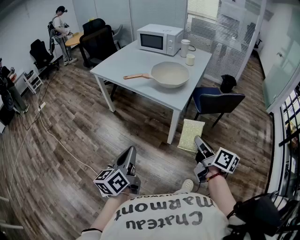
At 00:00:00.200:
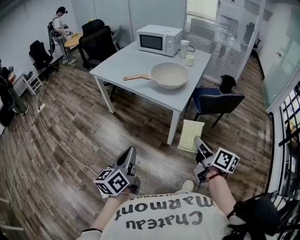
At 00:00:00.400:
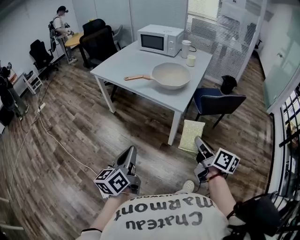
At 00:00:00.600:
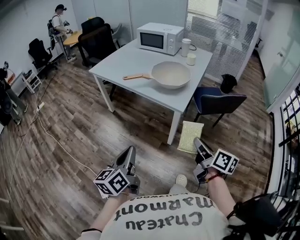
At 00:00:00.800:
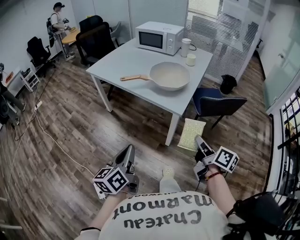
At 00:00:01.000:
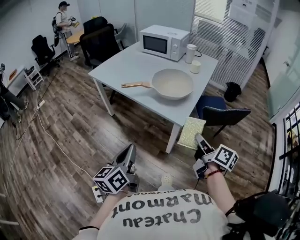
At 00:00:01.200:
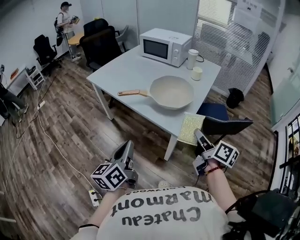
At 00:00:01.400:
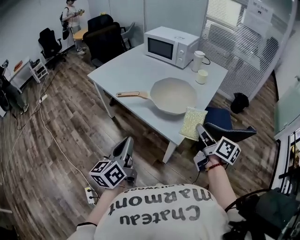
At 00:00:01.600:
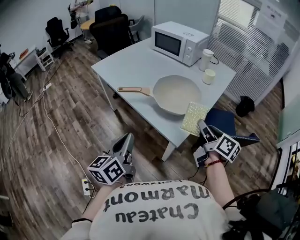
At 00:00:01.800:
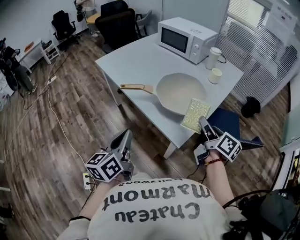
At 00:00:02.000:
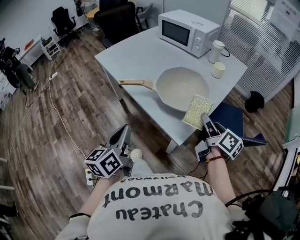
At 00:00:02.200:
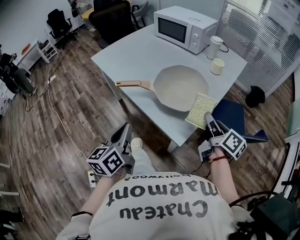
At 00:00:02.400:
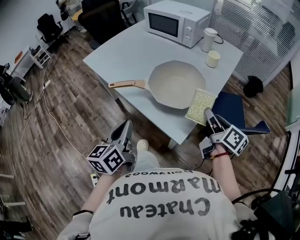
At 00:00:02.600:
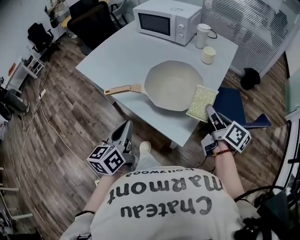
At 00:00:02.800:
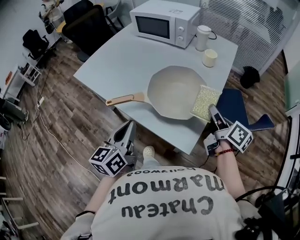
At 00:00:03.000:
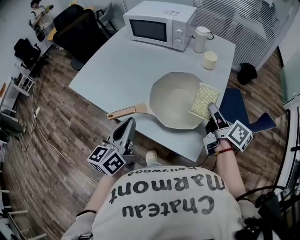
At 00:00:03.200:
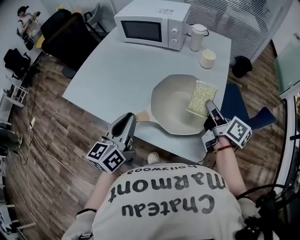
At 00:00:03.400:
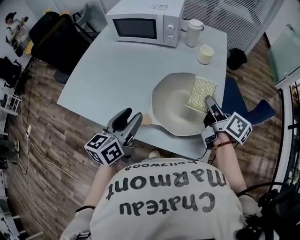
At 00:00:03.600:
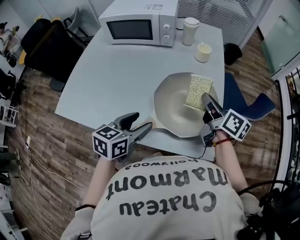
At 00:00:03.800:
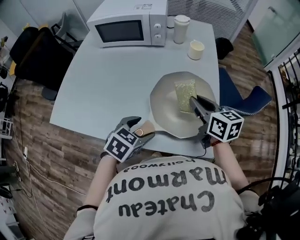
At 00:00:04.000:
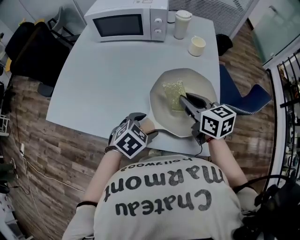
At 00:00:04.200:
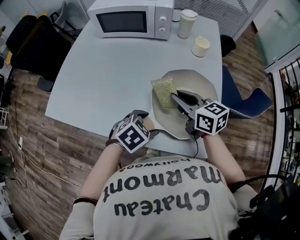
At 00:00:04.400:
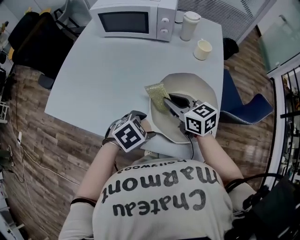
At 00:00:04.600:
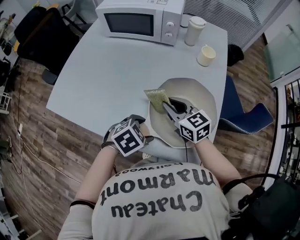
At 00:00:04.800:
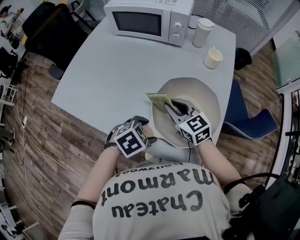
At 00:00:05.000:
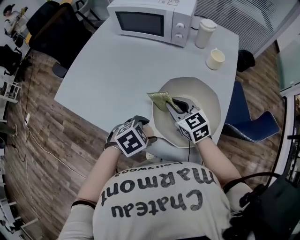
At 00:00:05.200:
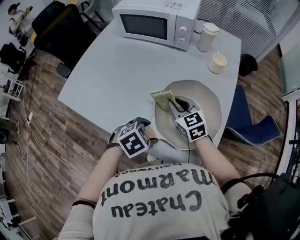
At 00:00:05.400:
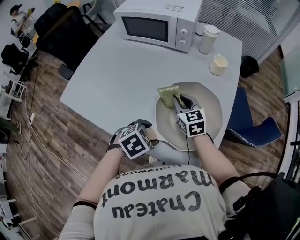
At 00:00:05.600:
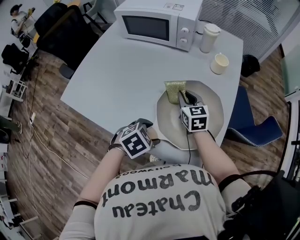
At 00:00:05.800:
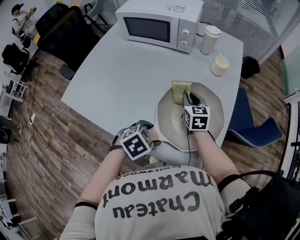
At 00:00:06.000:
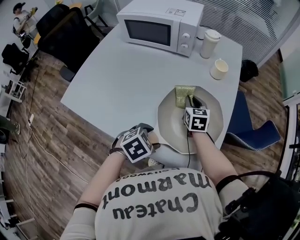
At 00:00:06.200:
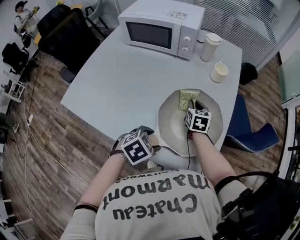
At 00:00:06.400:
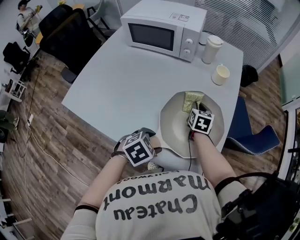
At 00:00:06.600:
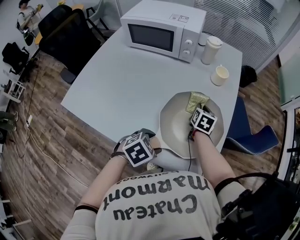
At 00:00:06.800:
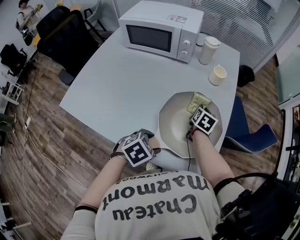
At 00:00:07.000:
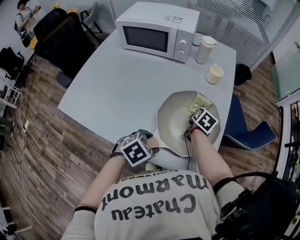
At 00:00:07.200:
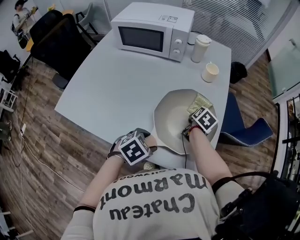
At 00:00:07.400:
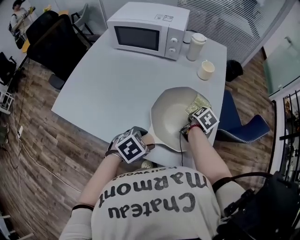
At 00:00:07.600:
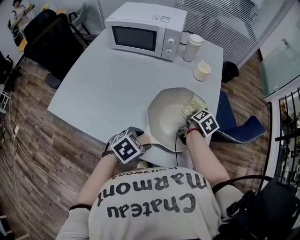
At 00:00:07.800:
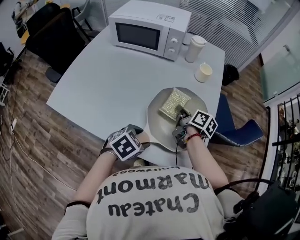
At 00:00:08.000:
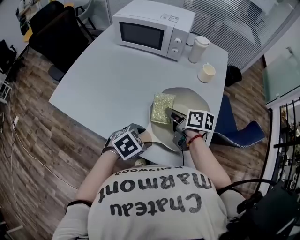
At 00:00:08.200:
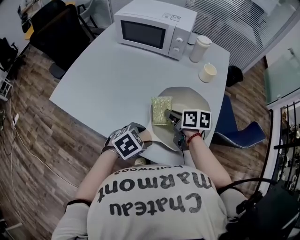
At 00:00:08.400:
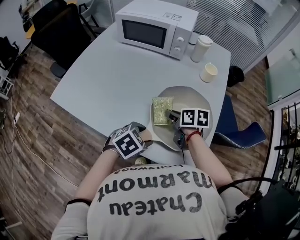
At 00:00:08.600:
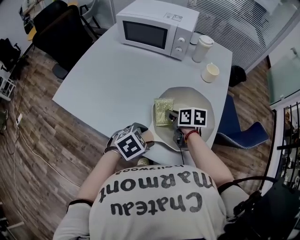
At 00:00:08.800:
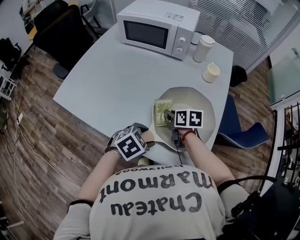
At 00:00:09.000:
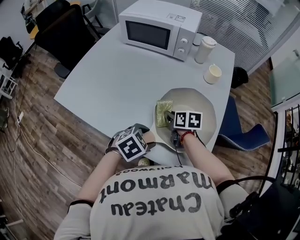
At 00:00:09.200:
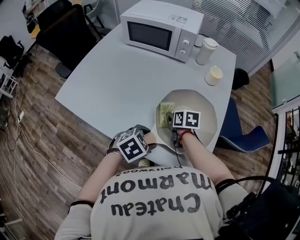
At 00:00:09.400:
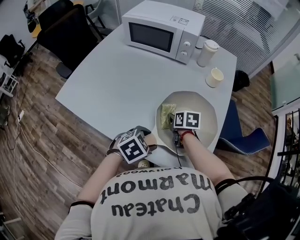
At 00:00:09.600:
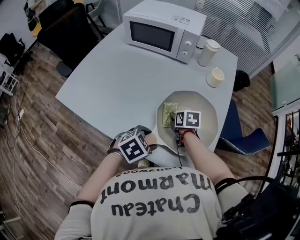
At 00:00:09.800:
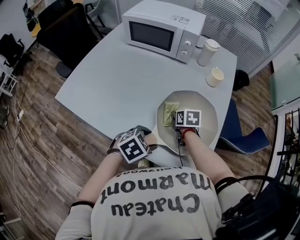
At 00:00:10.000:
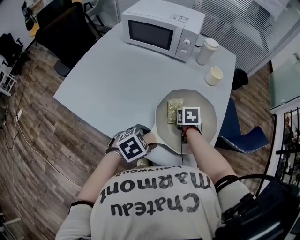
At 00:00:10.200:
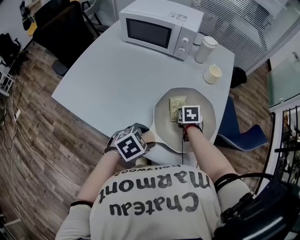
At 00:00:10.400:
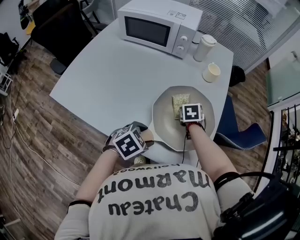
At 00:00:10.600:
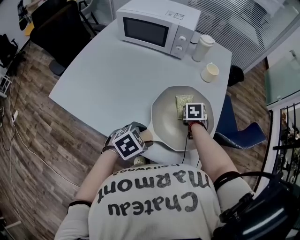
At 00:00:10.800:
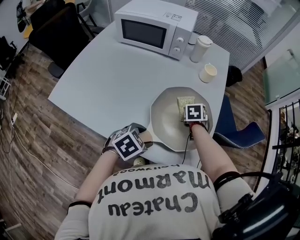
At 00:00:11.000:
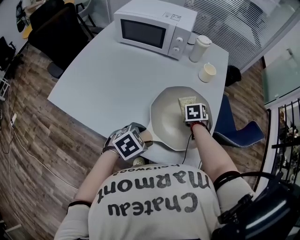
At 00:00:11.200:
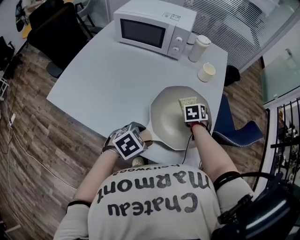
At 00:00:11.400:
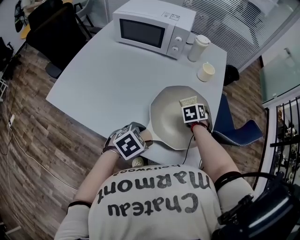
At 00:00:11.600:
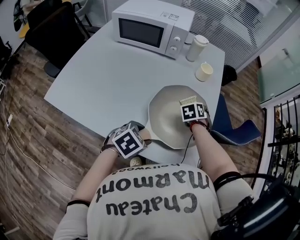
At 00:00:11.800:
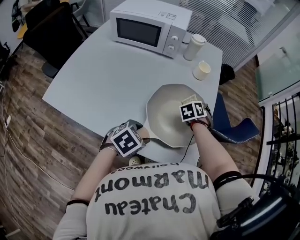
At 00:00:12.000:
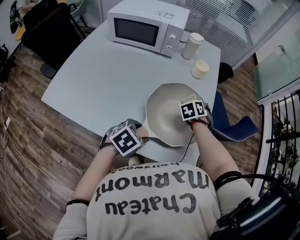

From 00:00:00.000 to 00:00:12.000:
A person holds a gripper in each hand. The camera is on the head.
From 00:00:00.000 to 00:00:01.600: Both grippers move forward, about 30 cm.
From 00:00:01.600 to 00:00:03.000: The left gripper is displaced forward by approximately 25 cm, while the right gripper heads forward, covering about 15 cm, and turns by some 20 degrees.
From 00:00:03.000 to 00:00:04.400: The right gripper moves to the left, some 25 cm, and twists some 40 degrees counterclockwise, seen from behind. Meanwhile the left gripper heads downward and forward, covering about 20 cm, tilts its fingers about 50 degrees downward, and opens its fingers.
From 00:00:04.400 to 00:00:06.000: The right gripper moves forward and downward, roughly 15 cm, and turns by roughly 30 degrees.
From 00:00:06.000 to 00:00:07.600: The right gripper travels to the right by about 15 cm, and twists roughly 50 degrees clockwise, seen from behind.
From 00:00:07.600 to 00:00:09.000: The right gripper moves approximately 5 cm upward and comes back, and changes its angle by some 60 degrees.
From 00:00:09.000 to 00:00:10.400: The right gripper is displaced to the right and forward by approximately 10 cm, and swivels roughly 40 degrees.
From 00:00:10.400 to 00:00:12.000: The right gripper heads to the right and forward, covering some 10 cm, and turns by about 30 degrees.

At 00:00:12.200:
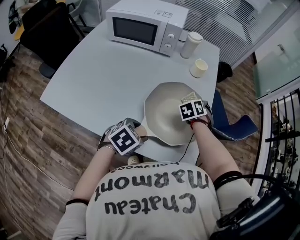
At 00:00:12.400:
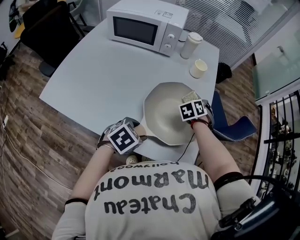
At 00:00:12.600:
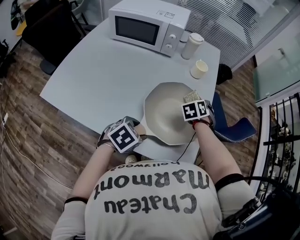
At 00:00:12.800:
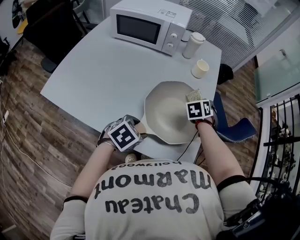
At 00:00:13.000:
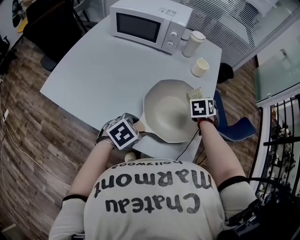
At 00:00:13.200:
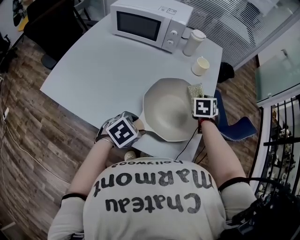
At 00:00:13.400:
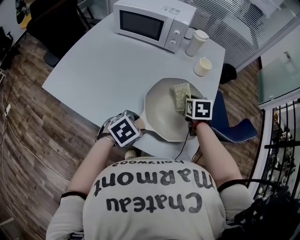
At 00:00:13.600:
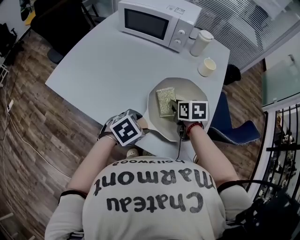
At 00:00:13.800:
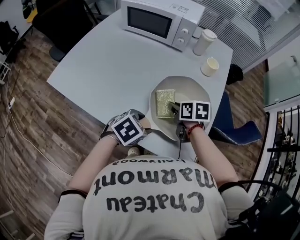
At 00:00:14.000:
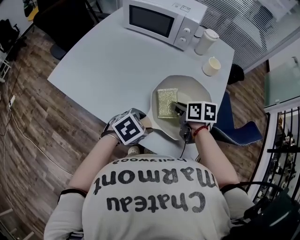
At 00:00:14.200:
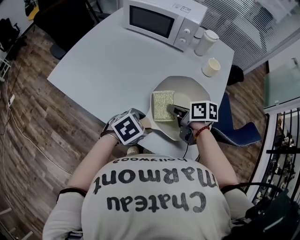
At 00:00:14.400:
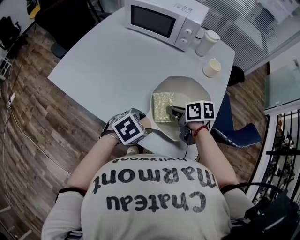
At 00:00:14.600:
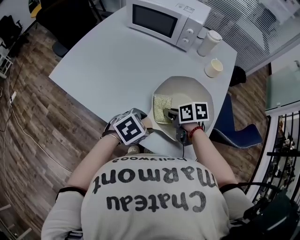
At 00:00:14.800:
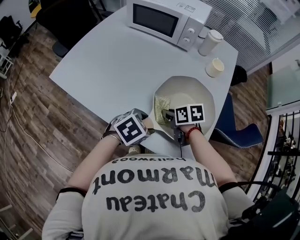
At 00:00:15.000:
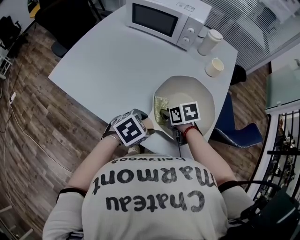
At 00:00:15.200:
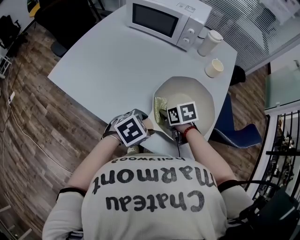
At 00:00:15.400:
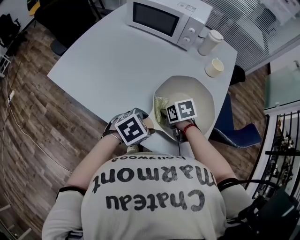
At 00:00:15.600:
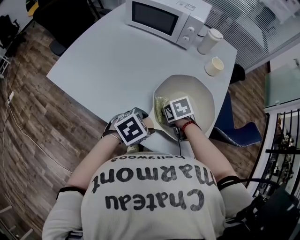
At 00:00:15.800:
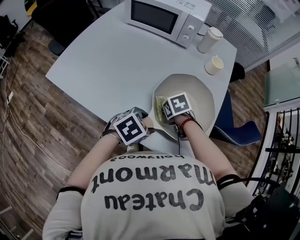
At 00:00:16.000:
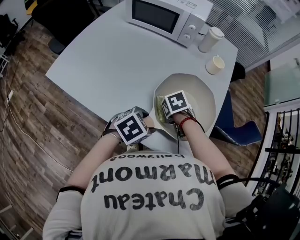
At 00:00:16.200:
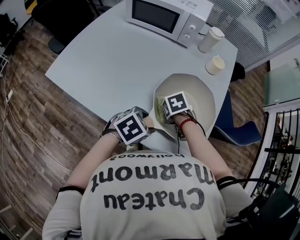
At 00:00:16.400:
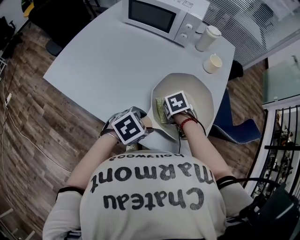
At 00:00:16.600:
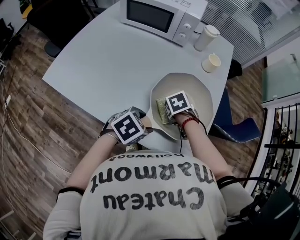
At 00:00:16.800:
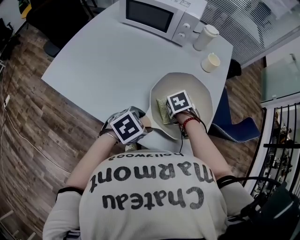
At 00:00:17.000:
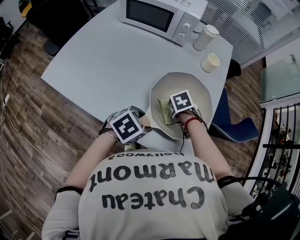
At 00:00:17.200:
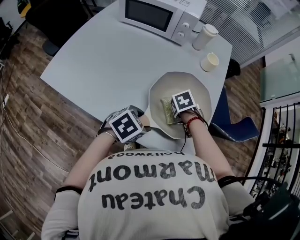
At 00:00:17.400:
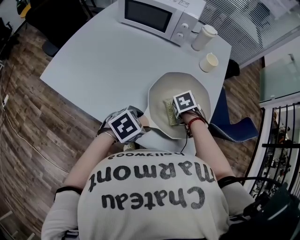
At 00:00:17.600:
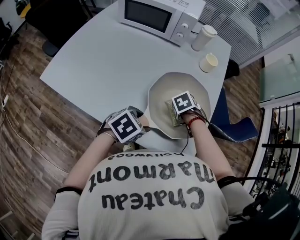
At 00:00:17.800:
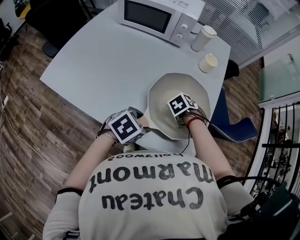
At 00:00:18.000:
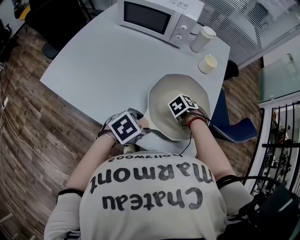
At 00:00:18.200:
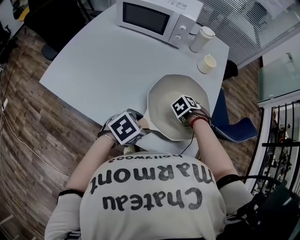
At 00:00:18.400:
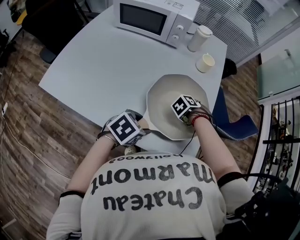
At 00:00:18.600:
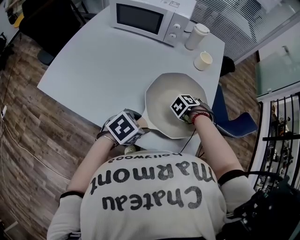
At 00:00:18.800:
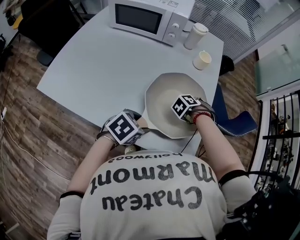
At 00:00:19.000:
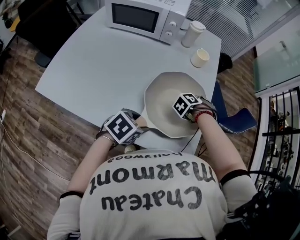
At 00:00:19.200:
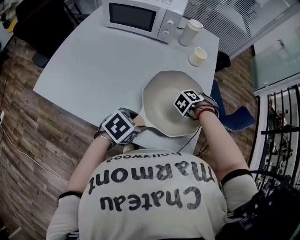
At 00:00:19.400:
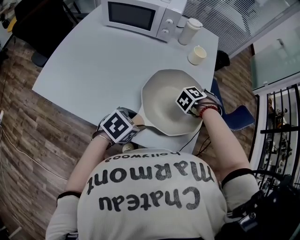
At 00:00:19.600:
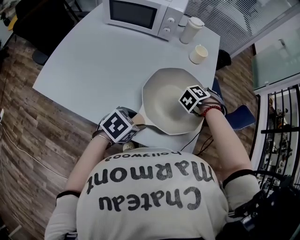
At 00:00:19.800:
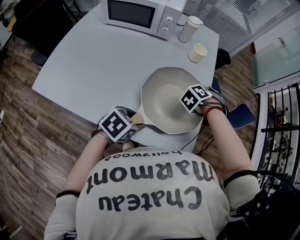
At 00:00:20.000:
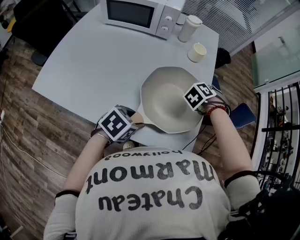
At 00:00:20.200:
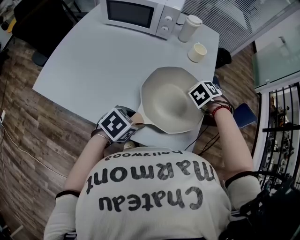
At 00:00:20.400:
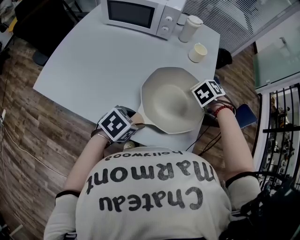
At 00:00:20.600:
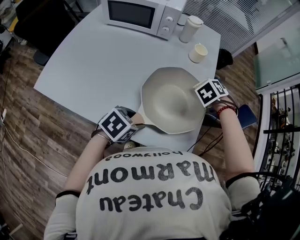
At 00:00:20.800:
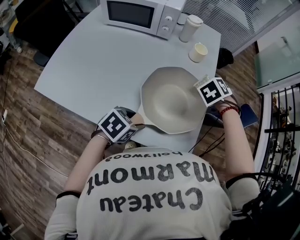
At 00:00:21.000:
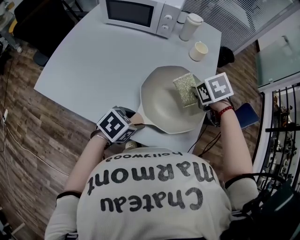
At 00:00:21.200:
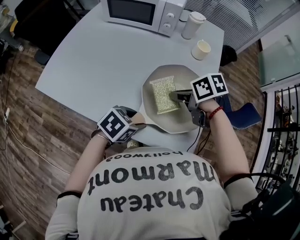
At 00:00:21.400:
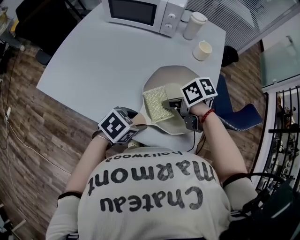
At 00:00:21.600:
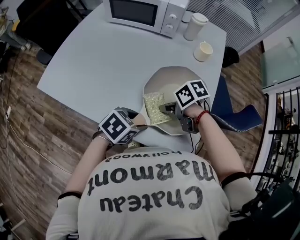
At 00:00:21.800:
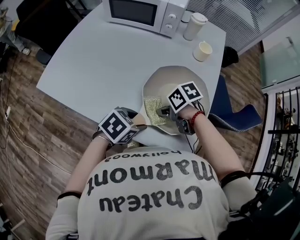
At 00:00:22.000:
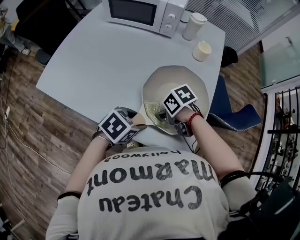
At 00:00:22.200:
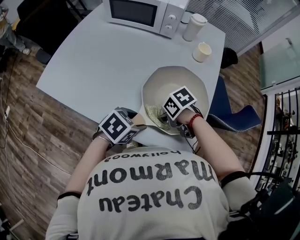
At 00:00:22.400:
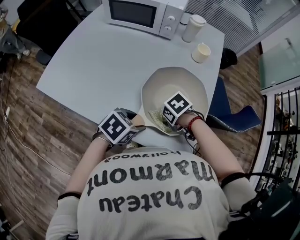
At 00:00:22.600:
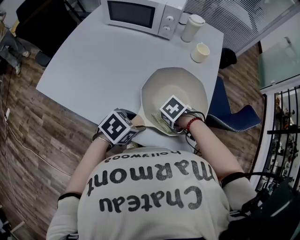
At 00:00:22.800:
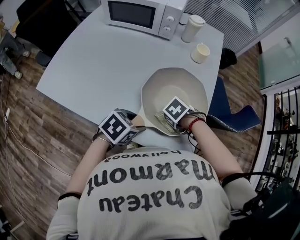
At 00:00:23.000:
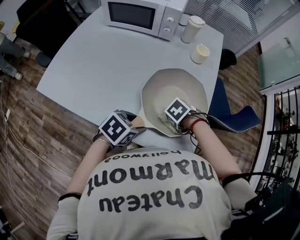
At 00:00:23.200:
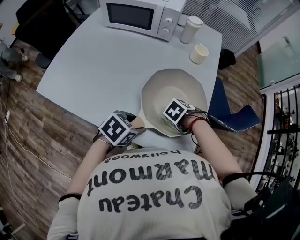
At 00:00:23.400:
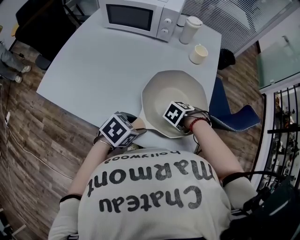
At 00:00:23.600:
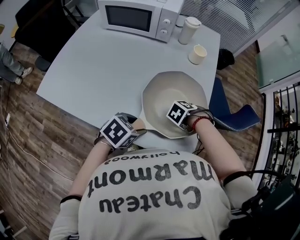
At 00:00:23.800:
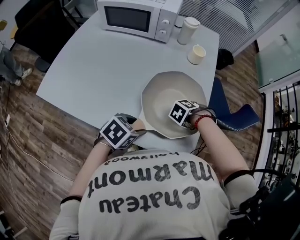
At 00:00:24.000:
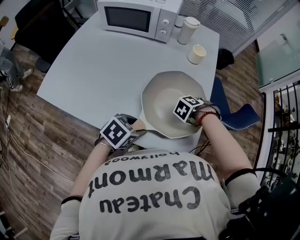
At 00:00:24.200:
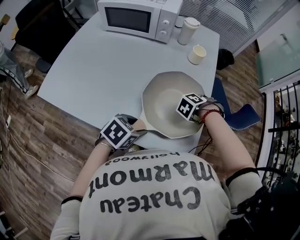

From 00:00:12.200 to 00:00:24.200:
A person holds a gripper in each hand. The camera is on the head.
From 00:00:12.200 to 00:00:13.800: The right gripper ends up roughly 20 cm from where it was, and turns by some 60 degrees.
From 00:00:13.800 to 00:00:15.200: The right gripper moves about 5 cm.
From 00:00:15.200 to 00:00:16.600: The right gripper ends up some 5 cm from where it was, and rotates approximately 30 degrees.
From 00:00:16.600 to 00:00:18.200: The right gripper changes place by about 10 cm, and turns by some 30 degrees.
From 00:00:18.200 to 00:00:19.800: The right gripper goes approximately 10 cm upward and forward.
From 00:00:19.800 to 00:00:21.200: The right gripper moves approximately 20 cm, and turns by about 80 degrees.
From 00:00:21.200 to 00:00:22.600: The right gripper travels downward by roughly 10 cm, and angles its fingers downward, by about 30 degrees.
From 00:00:22.600 to 00:00:24.200: The right gripper changes place by some 15 cm, and swivels roughly 40 degrees.
